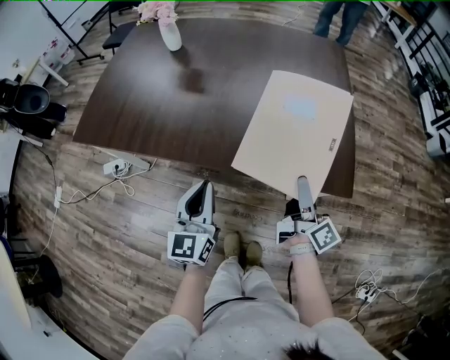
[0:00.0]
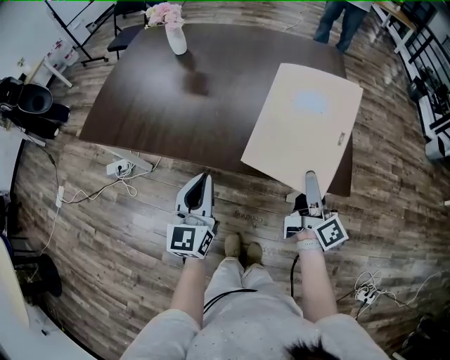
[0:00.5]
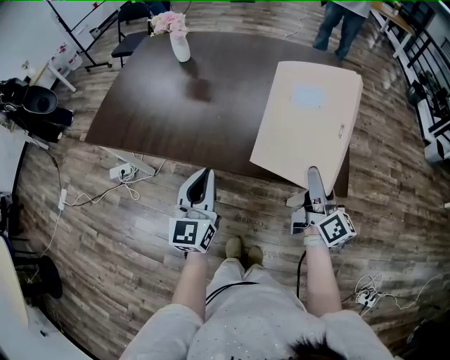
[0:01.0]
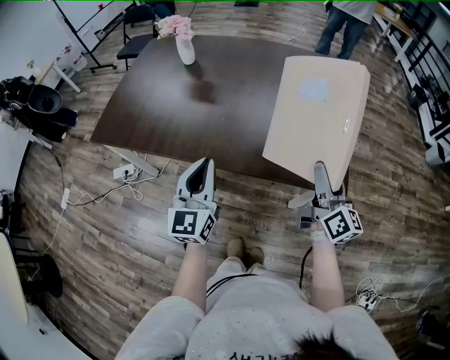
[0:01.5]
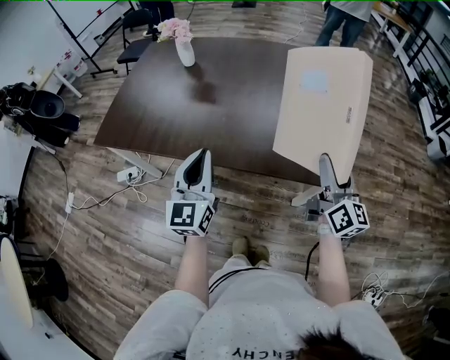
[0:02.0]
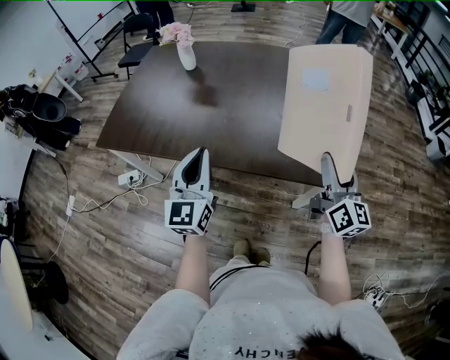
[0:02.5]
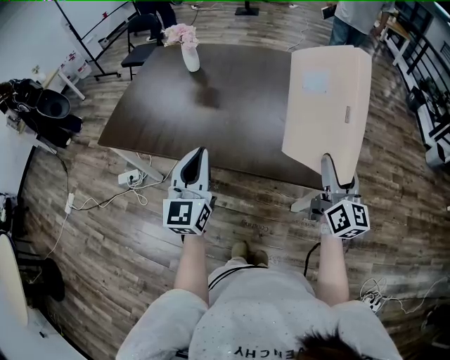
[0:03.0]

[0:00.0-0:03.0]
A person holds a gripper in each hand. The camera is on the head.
0:00.0 to 0:01.5: The grippers both shift upward by some 10 cm. The right gripper rotates approximately 30 degrees.
0:01.5 to 0:03.0: The right gripper is displaced upward by about 5 cm. Meanwhile the left gripper changes place by roughly 5 cm.

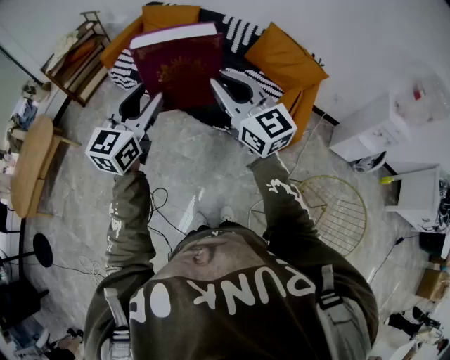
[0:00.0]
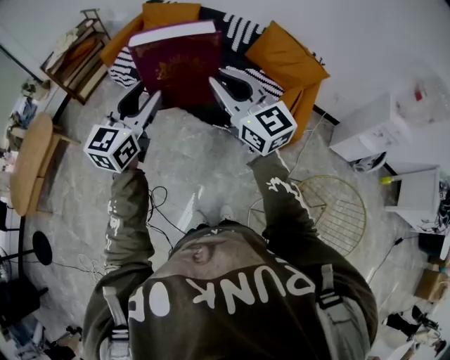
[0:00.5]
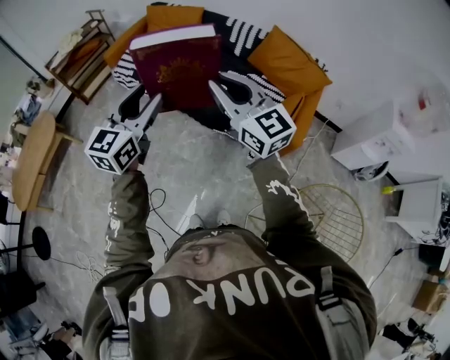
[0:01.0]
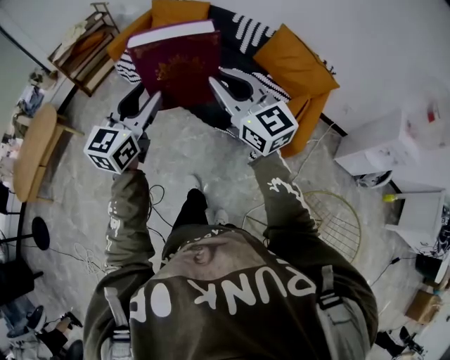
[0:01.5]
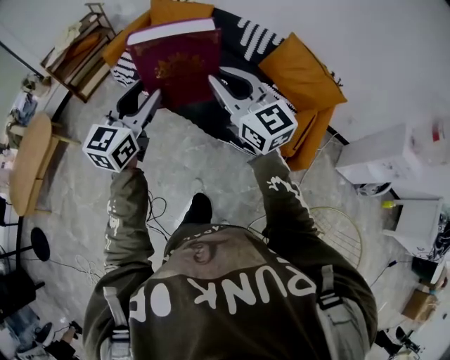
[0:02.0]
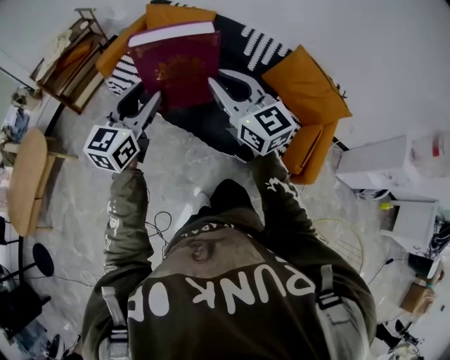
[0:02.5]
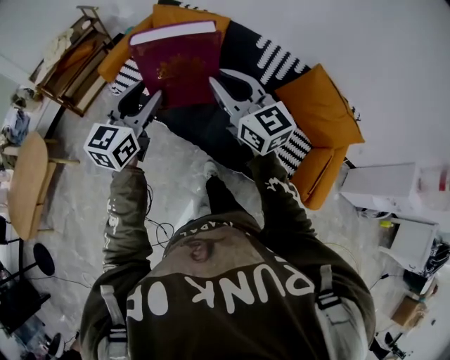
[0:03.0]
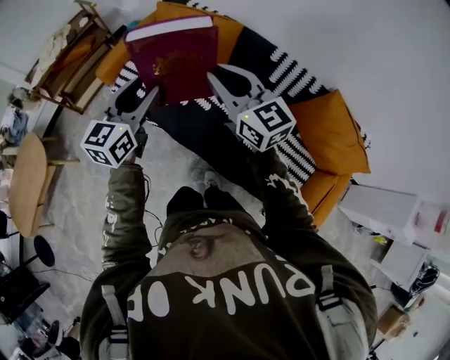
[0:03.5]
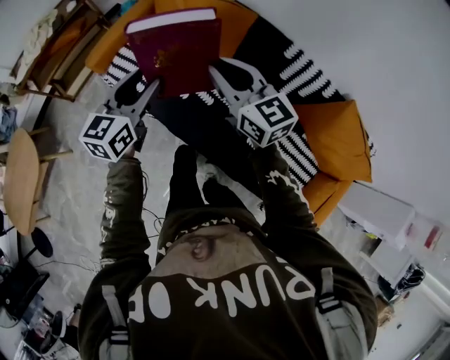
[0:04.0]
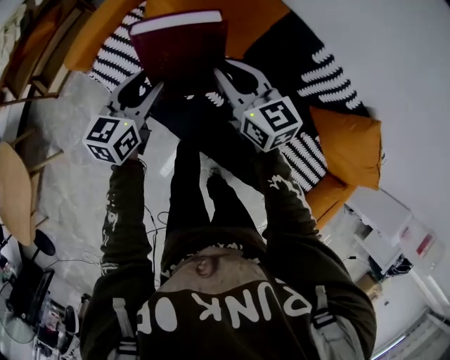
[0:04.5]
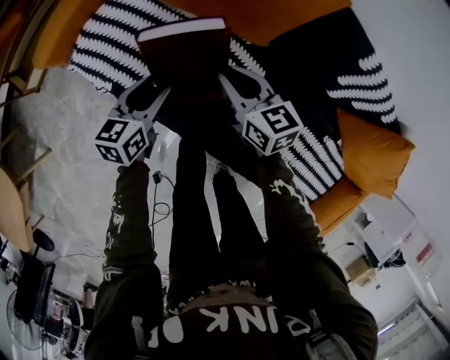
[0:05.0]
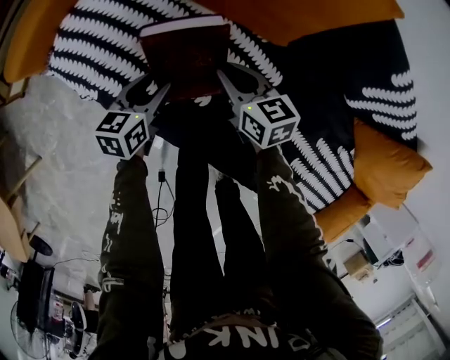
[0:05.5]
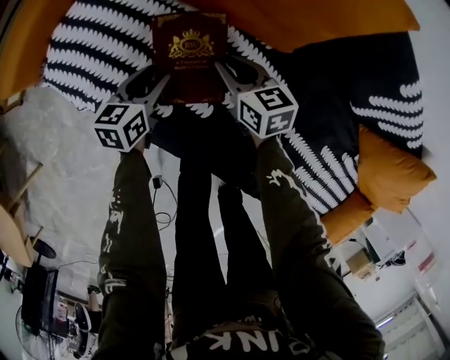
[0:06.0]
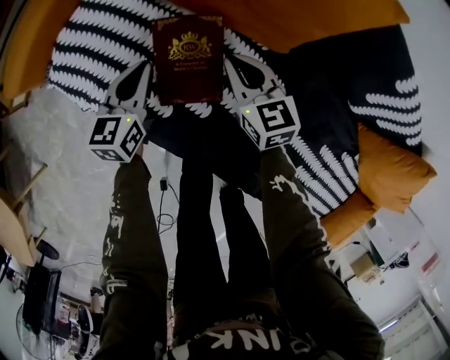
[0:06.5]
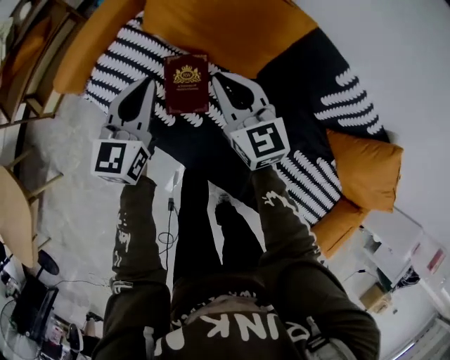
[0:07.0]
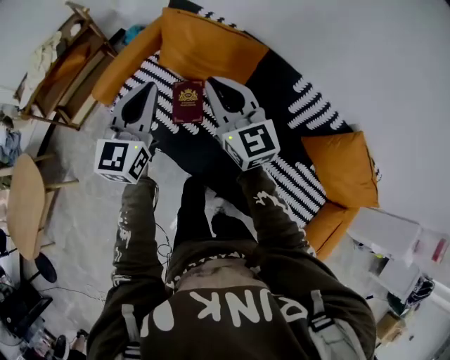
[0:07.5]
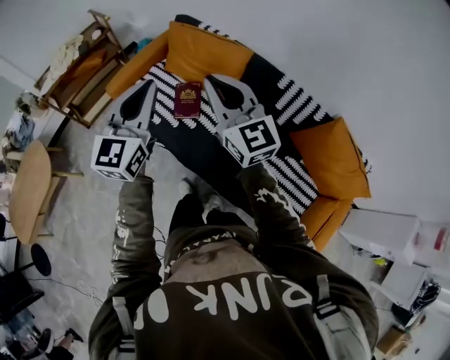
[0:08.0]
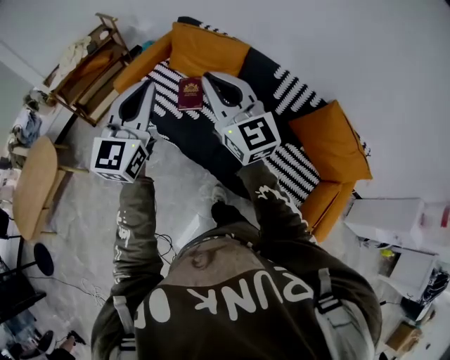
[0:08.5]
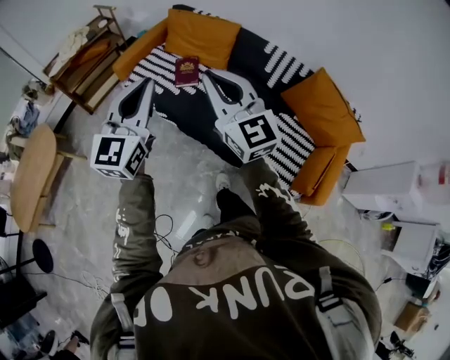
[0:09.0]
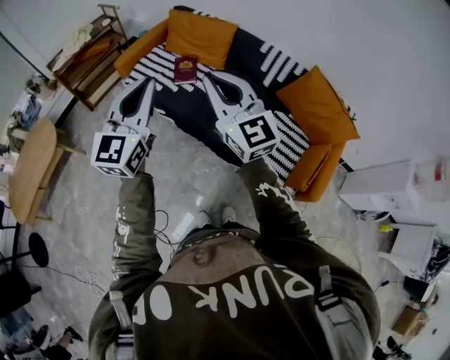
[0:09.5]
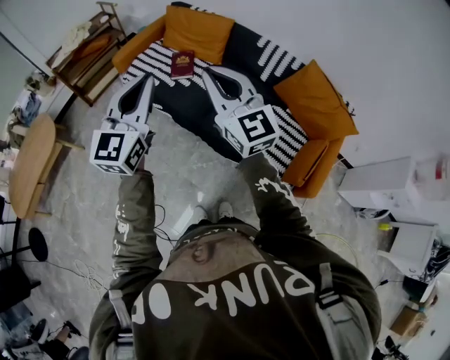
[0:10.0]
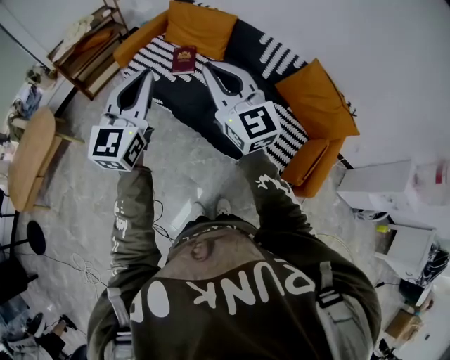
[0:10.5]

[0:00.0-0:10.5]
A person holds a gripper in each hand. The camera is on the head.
0:00.0 to 0:02.0: The grippers both shift forward by some 15 cm.
0:02.0 to 0:04.0: The two grippers travel together, forward, about 50 cm.
0:04.0 to 0:06.5: Both grippers move downward and forward, about 50 cm. The left gripper closes; the right gripper swivels some 30 degrees.
0:06.5 to 0:08.5: Both grippers move upward and backward, about 80 cm. The right gripper tips its fingers upward by some 40 degrees, while the left gripper angles its fingers upward, by roughly 30 degrees.
0:08.5 to 0:10.5: Both grippers move backward, about 20 cm.

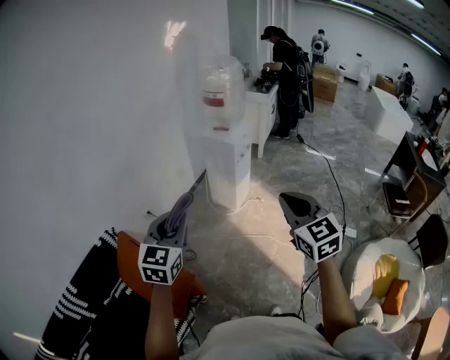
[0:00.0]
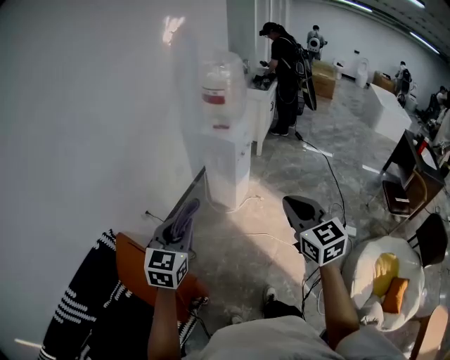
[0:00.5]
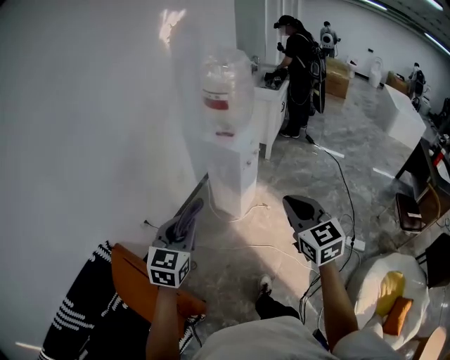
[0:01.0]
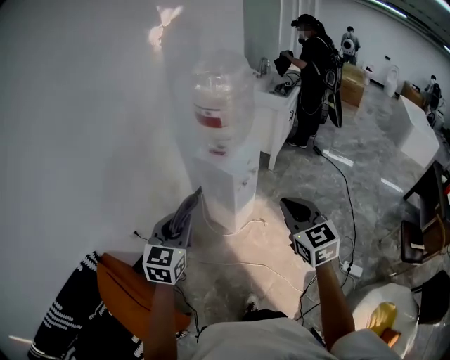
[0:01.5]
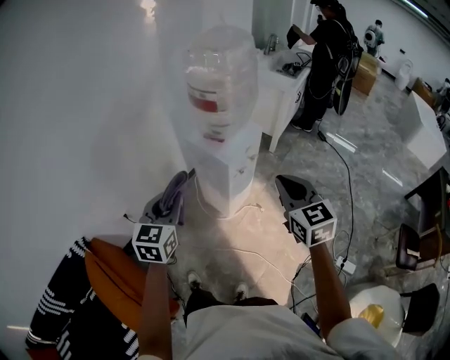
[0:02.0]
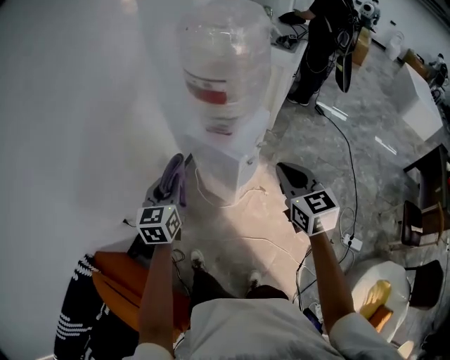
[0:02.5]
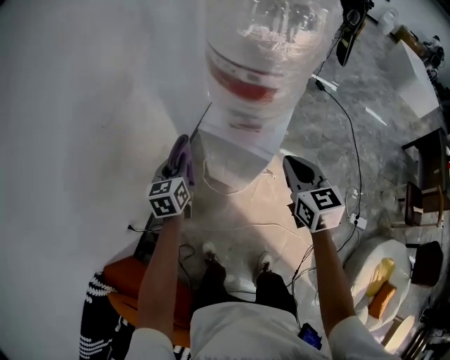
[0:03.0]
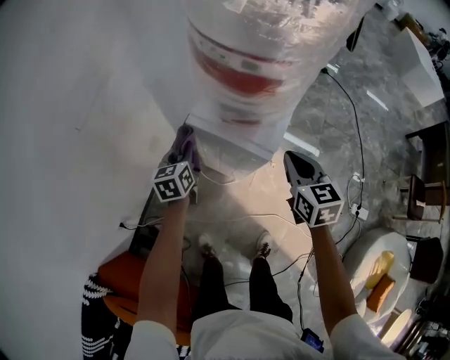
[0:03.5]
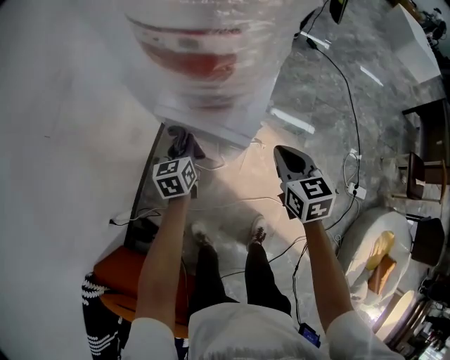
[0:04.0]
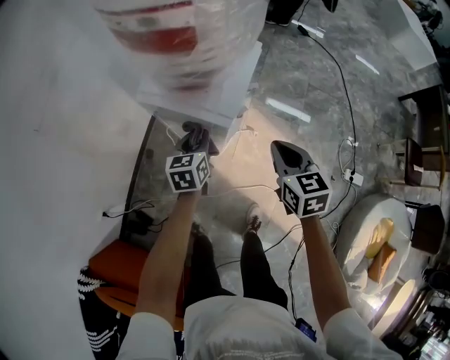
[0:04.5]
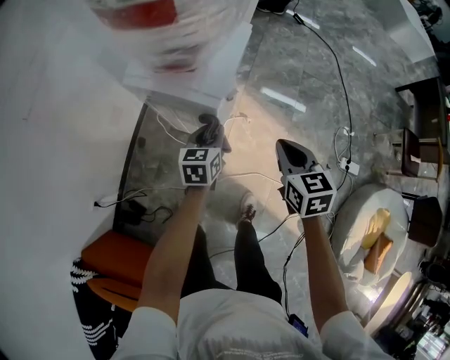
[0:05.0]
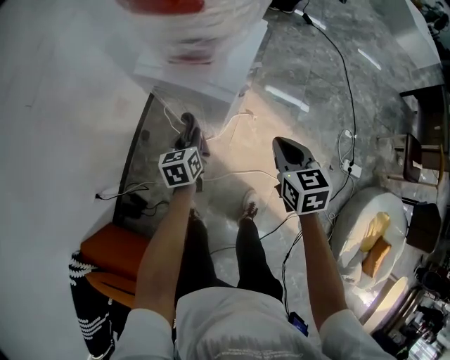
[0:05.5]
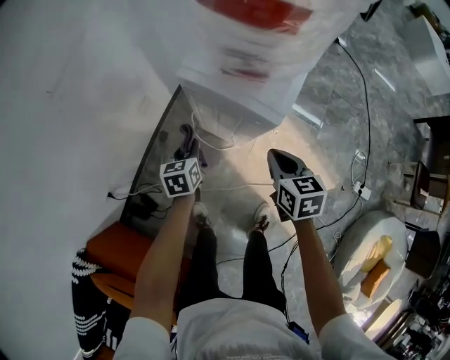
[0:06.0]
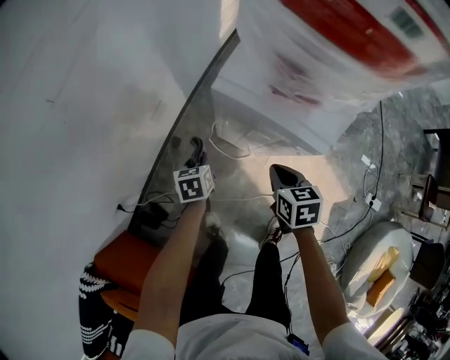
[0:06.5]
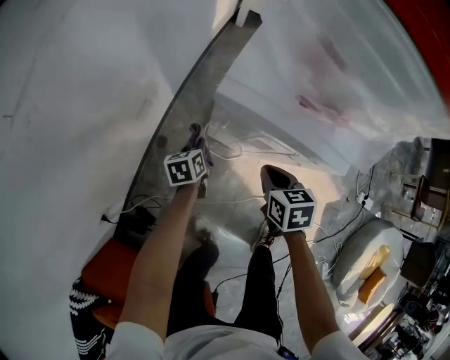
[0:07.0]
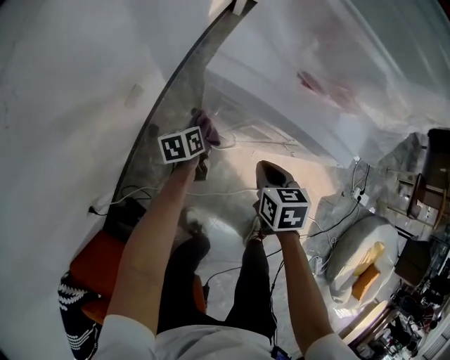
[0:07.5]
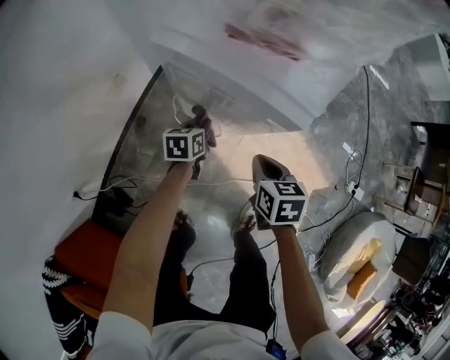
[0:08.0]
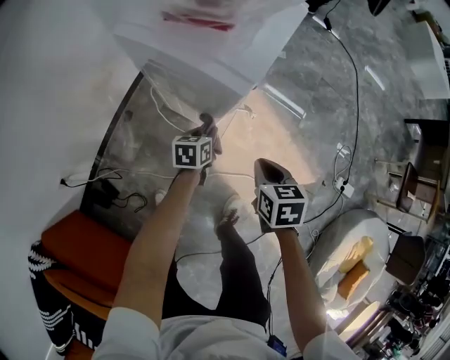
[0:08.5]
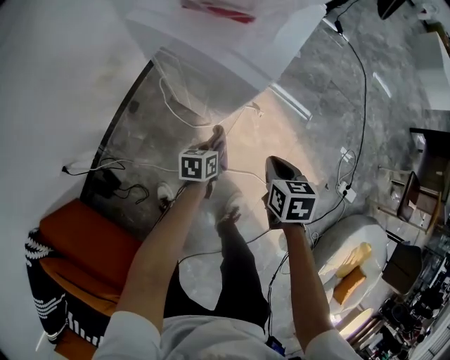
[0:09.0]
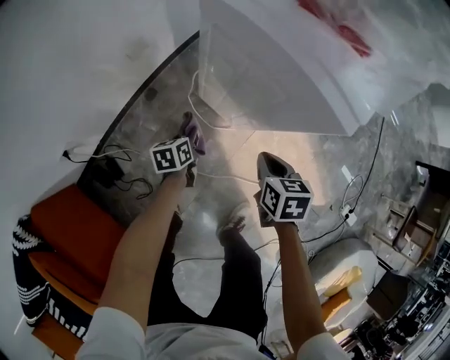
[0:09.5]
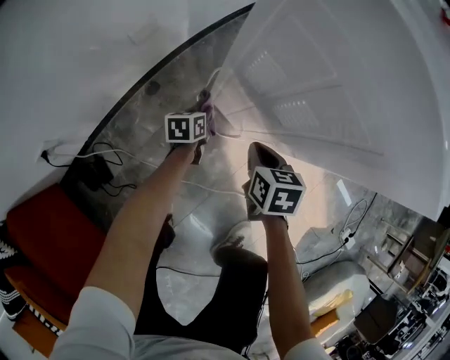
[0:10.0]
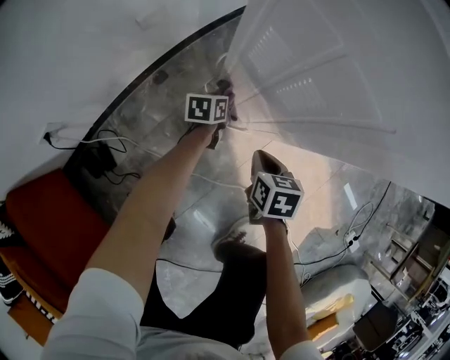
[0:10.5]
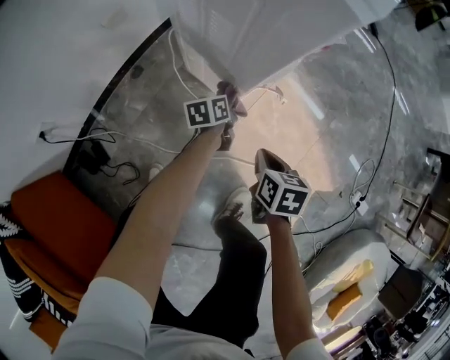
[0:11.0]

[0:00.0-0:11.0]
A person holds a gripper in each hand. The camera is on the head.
0:00.0 to 0:02.0: The two grippers travel together, forward, some 50 cm.
0:02.0 to 0:03.5: The left gripper goes some 50 cm forward and downward, and rotates some 30 degrees; the right gripper moves forward, downward and to the left, some 35 cm, and turns by about 30 degrees.
0:03.5 to 0:05.5: The left gripper heads to the right, downward and backward, covering approximately 20 cm; the right gripper moves backward, downward and to the right, about 15 cm.
0:05.5 to 0:07.5: The right gripper is displaced downward and to the left by about 30 cm; the left gripper heads downward, forward and to the left, covering approximately 25 cm, and changes its angle by about 20 degrees.
0:07.5 to 0:09.0: The right gripper moves to the right, approximately 20 cm. Meanwhile the left gripper travels to the right and backward by approximately 30 cm.
0:09.0 to 0:11.0: The left gripper heads downward and forward, covering roughly 15 cm, moves about 20 cm to the left and comes back, and rotates approximately 20 degrees. Meanwhile the right gripper shifts roughly 20 cm downward.

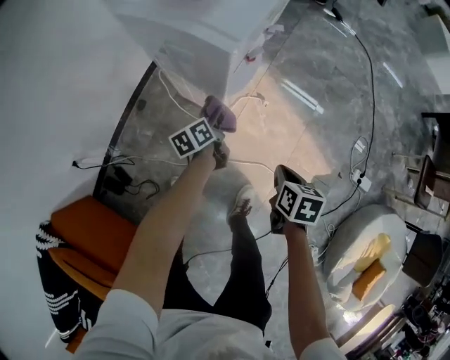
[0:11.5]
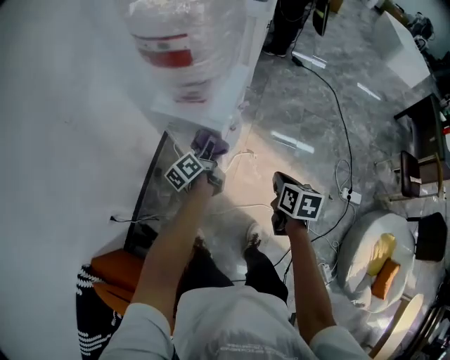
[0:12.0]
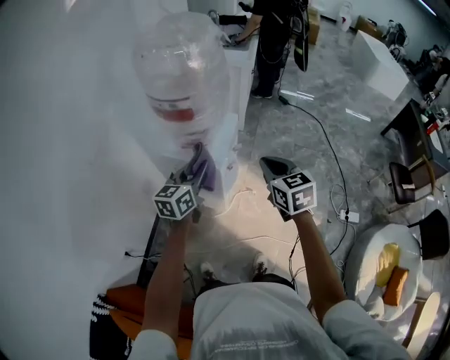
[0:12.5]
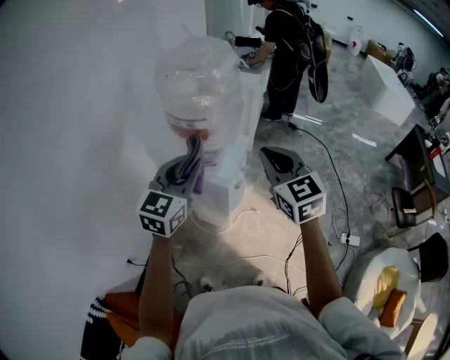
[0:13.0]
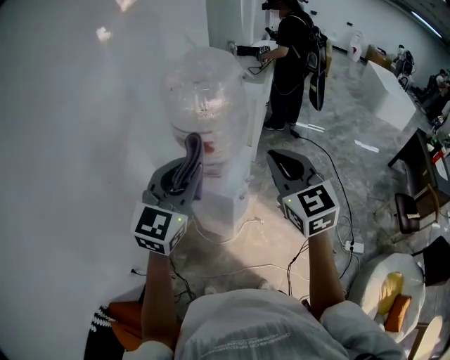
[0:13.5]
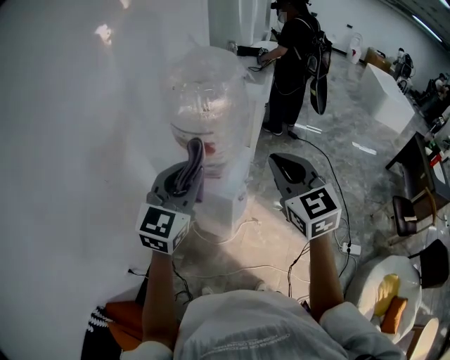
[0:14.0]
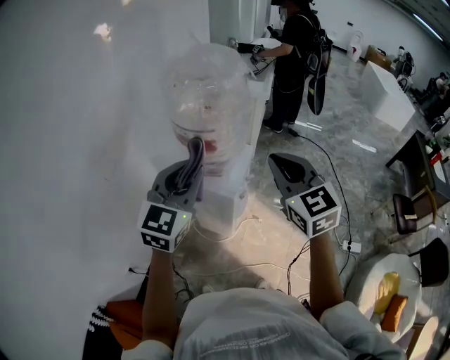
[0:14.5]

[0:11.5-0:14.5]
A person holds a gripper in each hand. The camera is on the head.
0:11.5 to 0:13.0: The two grippers go roughly 60 cm upward. The left gripper rotates around the line of its fingers by about 70 degrees, clockwise from behind. The right gripper tilts its fingers about 50 degrees upward.
